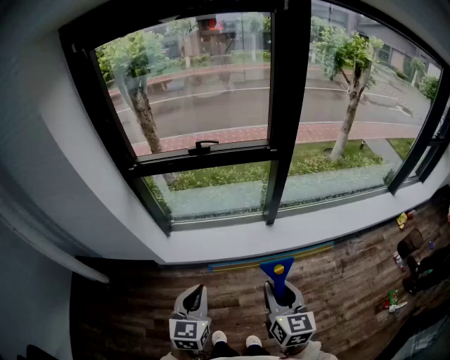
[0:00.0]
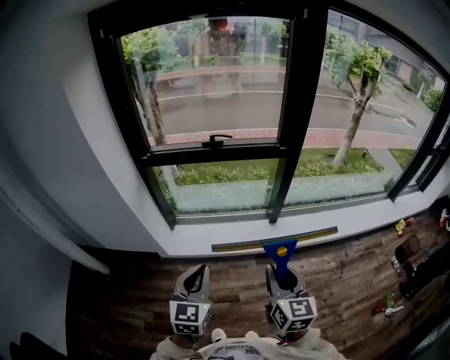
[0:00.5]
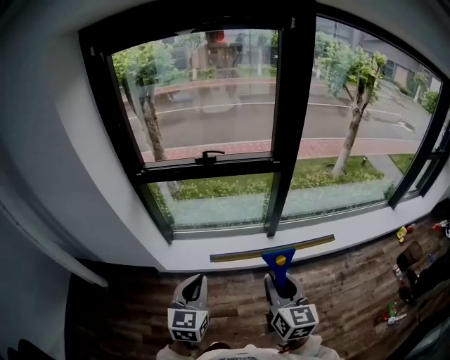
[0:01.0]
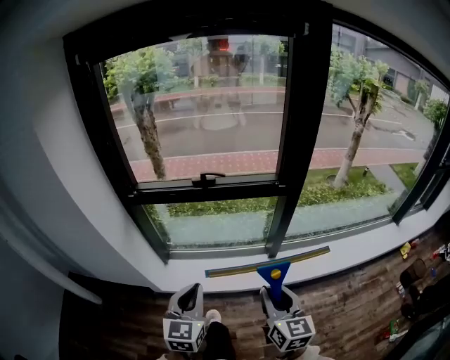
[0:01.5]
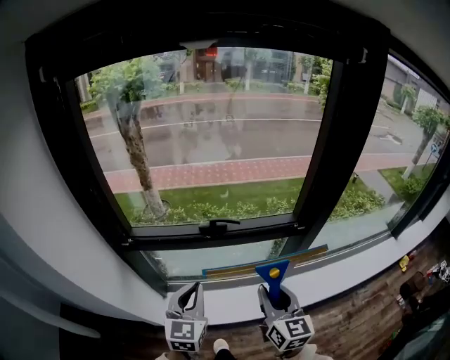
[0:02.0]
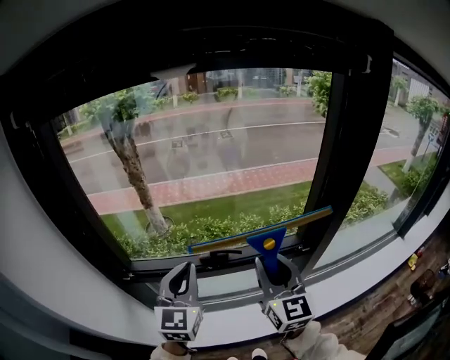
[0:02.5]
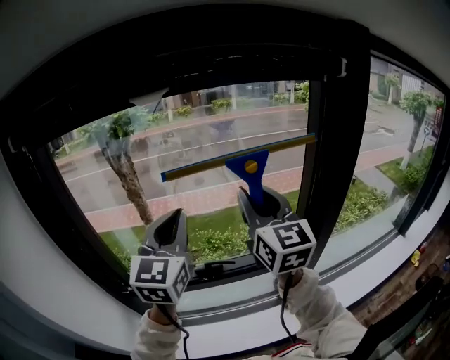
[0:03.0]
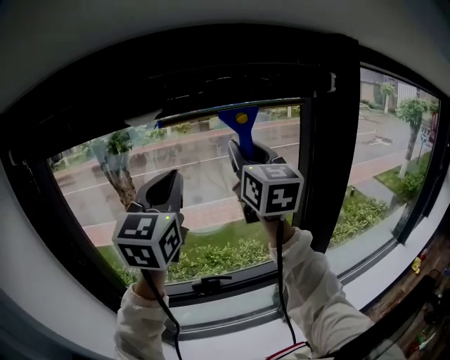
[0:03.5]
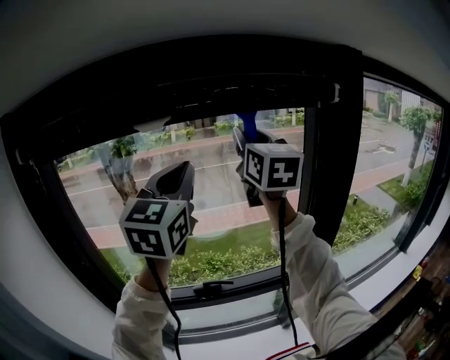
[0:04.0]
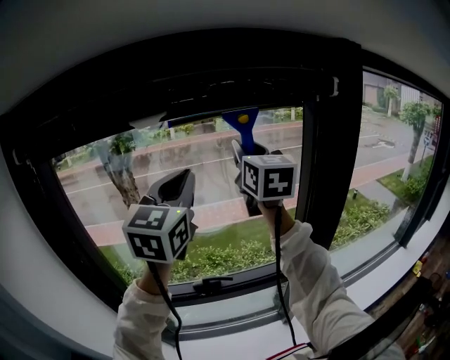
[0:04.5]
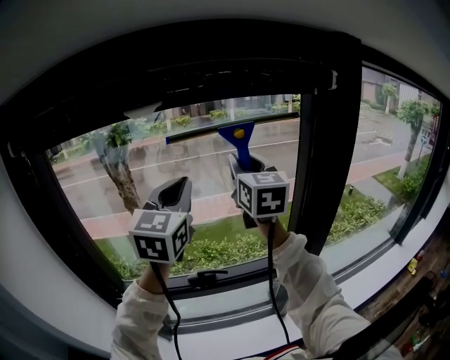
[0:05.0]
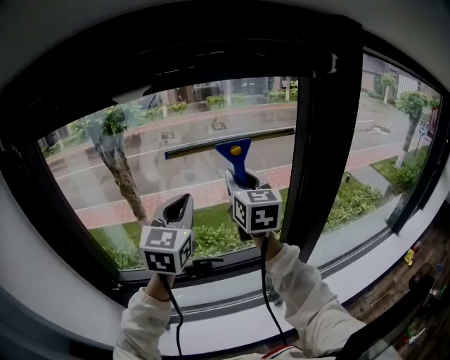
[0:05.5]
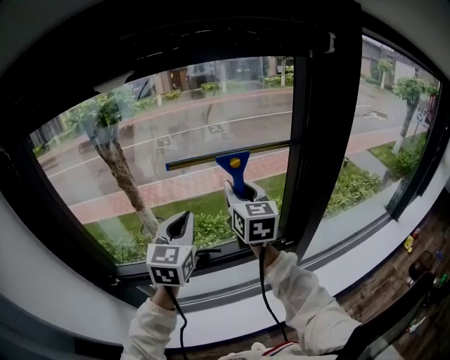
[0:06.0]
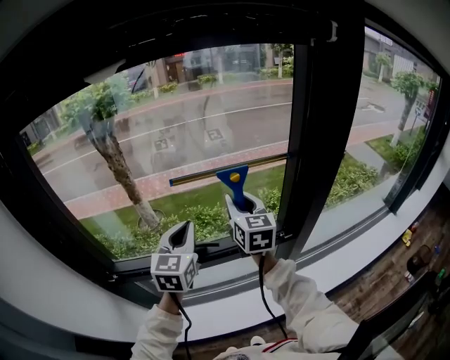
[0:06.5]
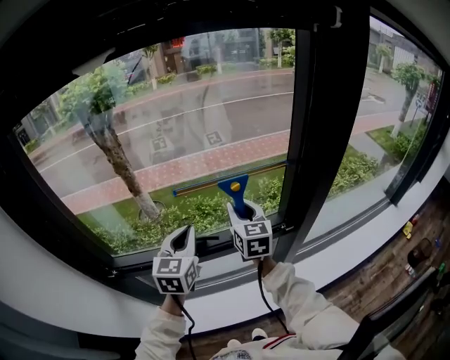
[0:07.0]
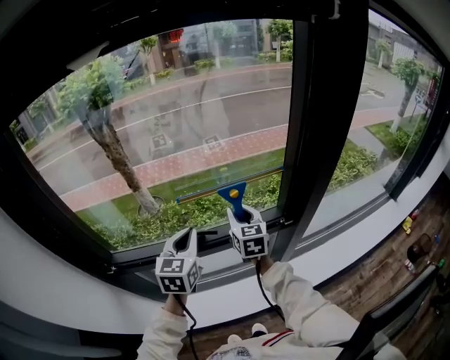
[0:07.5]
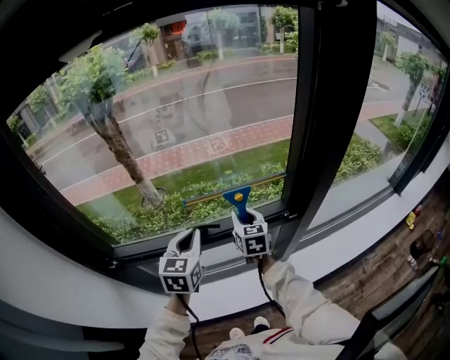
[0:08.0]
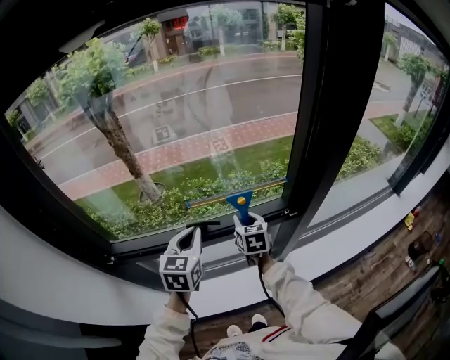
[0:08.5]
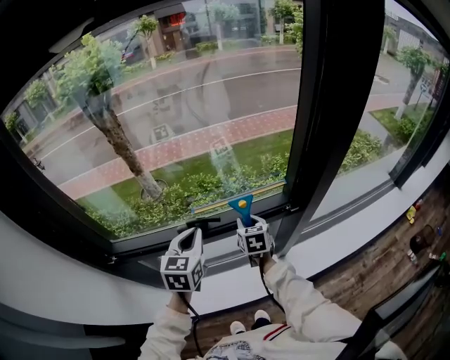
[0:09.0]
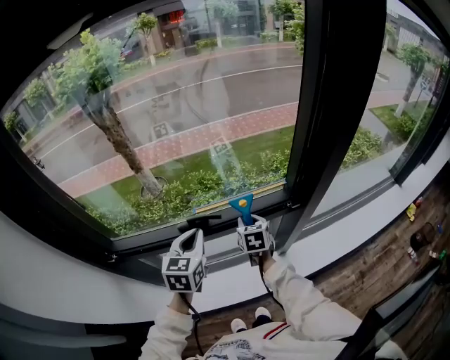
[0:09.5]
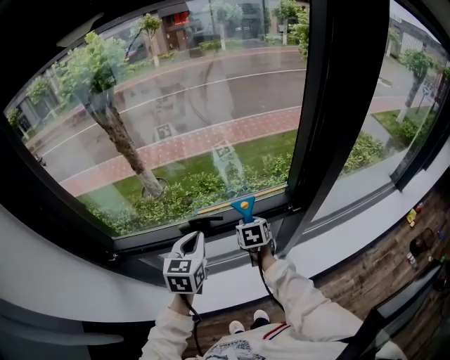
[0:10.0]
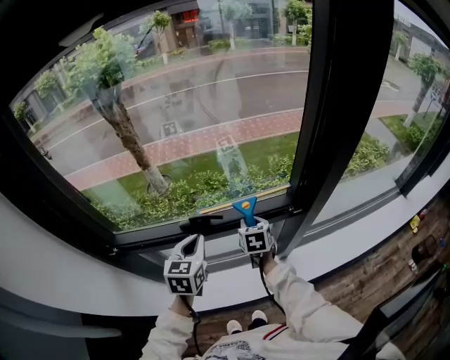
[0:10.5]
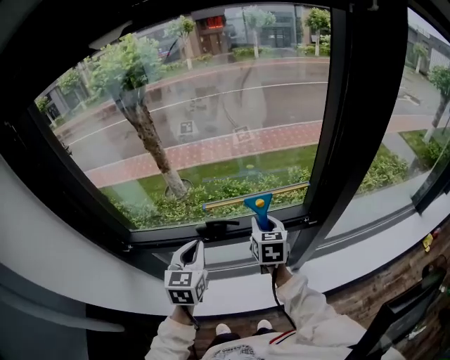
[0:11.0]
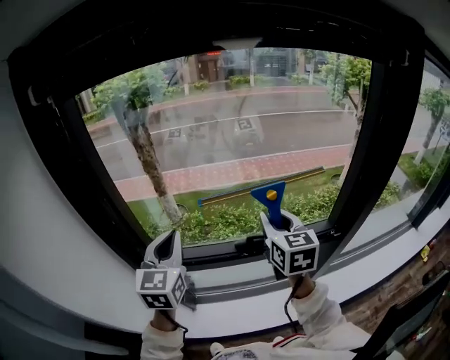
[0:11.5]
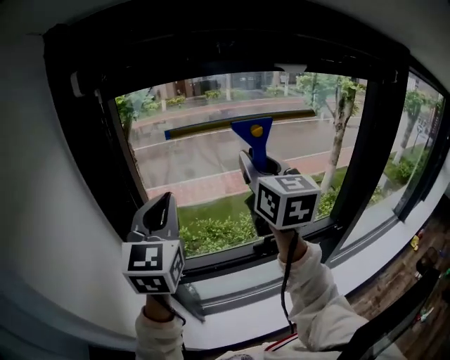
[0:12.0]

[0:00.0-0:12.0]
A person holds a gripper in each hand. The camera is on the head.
0:00.0 to 0:02.0: The two grippers go approximately 35 cm forward.
0:02.0 to 0:04.0: Both grippers travel together upward and forward, about 50 cm. The left gripper changes its angle by about 30 degrees, while the right gripper turns by approximately 30 degrees.
0:04.0 to 0:06.0: The grippers both shift downward by approximately 25 cm.
0:06.0 to 0:08.0: The left gripper heads downward, covering roughly 15 cm, while the right gripper moves downward, some 25 cm, and turns by about 20 degrees.
0:08.0 to 0:10.0: The right gripper heads downward, covering some 10 cm, and rotates about 20 degrees.
0:10.0 to 0:12.0: The two grippers go approximately 50 cm upward and to the left. The right gripper tips its fingers upward by approximately 50 degrees, while the left gripper turns by about 30 degrees.

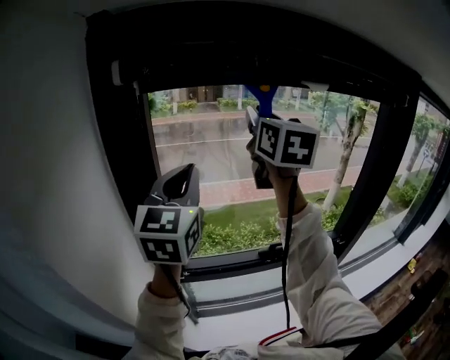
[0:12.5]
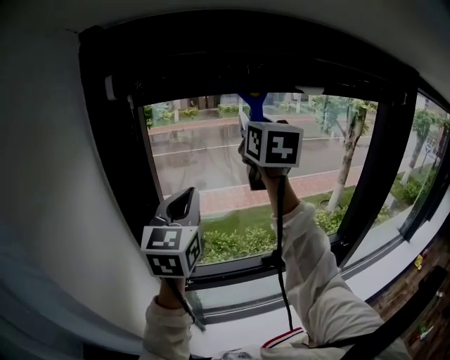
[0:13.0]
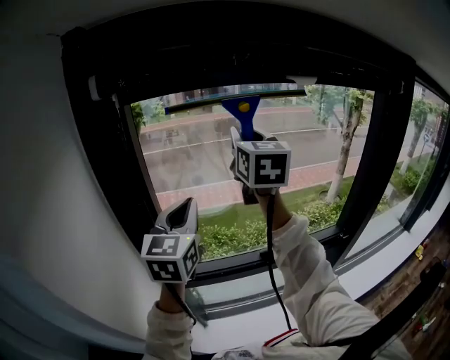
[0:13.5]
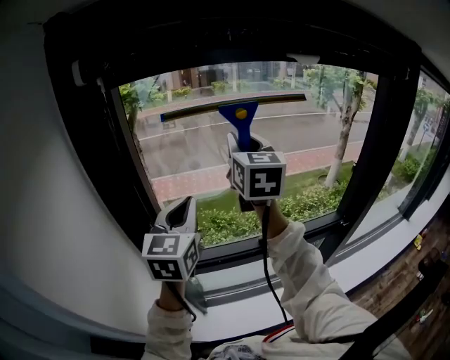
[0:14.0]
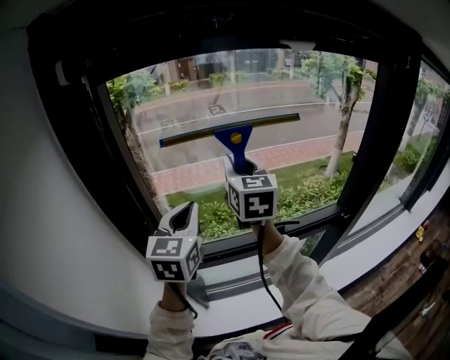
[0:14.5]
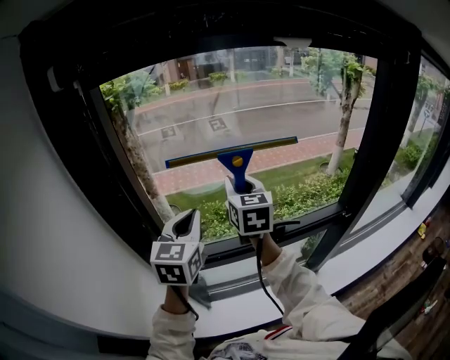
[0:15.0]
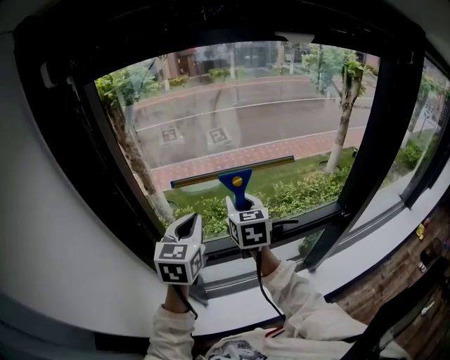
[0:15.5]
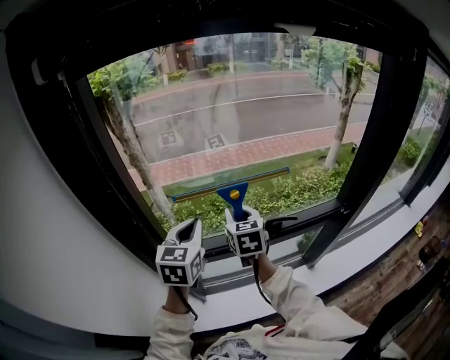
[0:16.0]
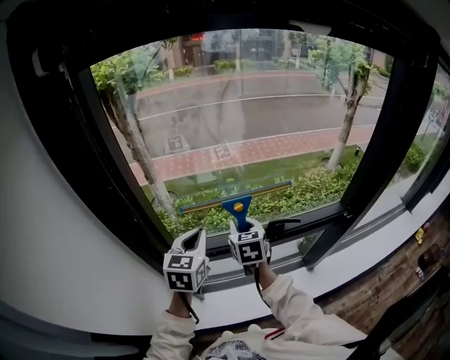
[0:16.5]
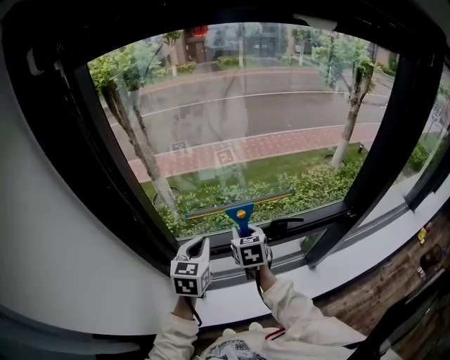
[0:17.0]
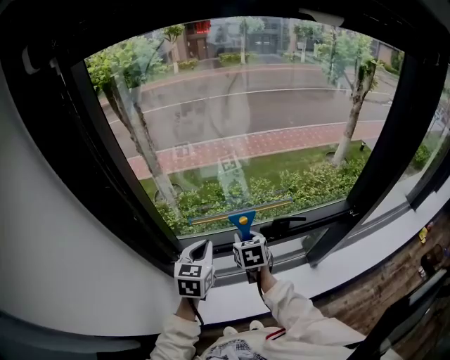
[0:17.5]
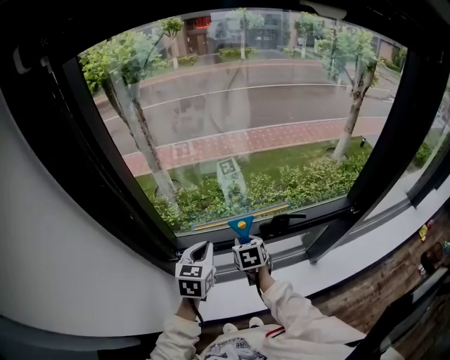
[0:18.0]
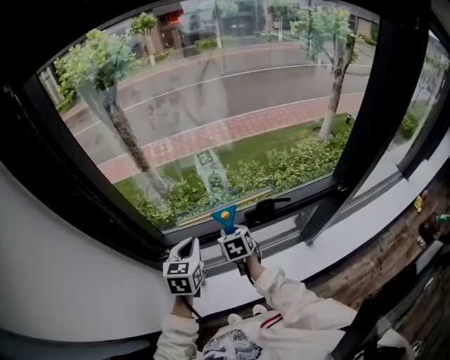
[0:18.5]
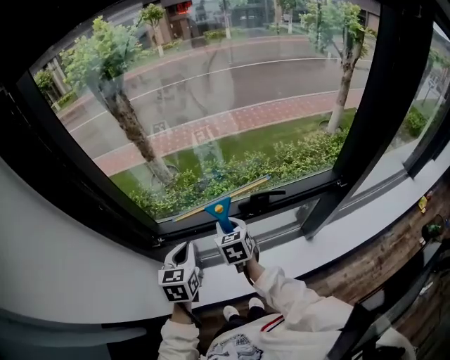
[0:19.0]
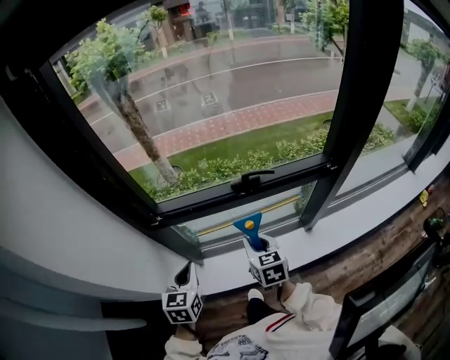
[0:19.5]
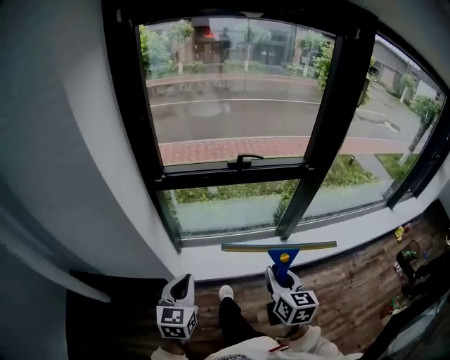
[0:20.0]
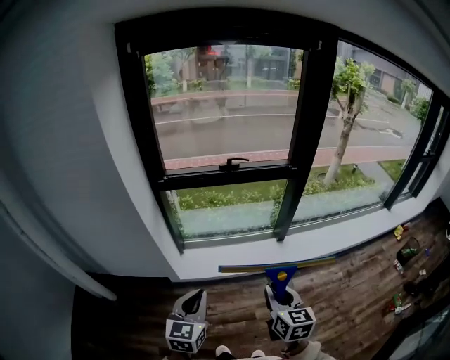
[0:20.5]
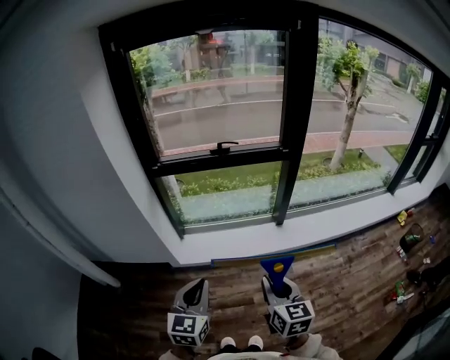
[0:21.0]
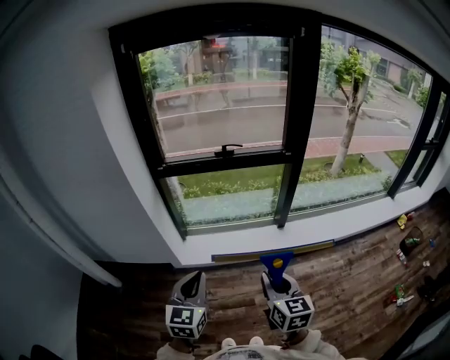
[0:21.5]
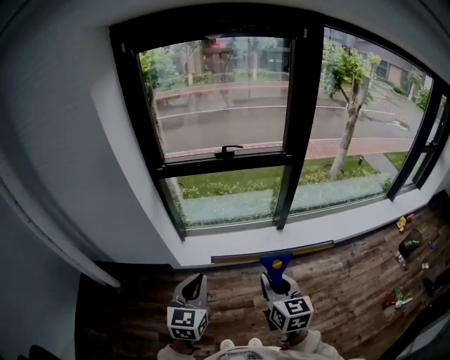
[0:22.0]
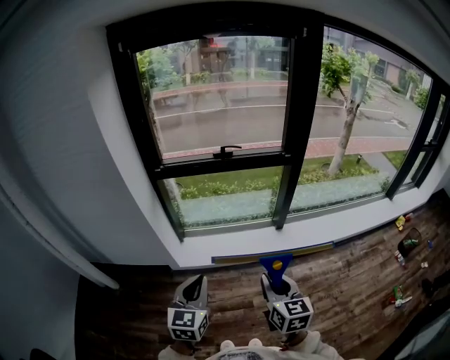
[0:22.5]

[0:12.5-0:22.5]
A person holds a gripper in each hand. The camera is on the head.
0:12.5 to 0:14.5: The grippers both shift downward by approximately 20 cm.
0:14.5 to 0:16.5: The right gripper goes roughly 25 cm downward, and rotates roughly 30 degrees. Meanwhile the left gripper moves downward, some 15 cm.
0:16.5 to 0:18.5: The two grippers go approximately 10 cm downward.
0:18.5 to 0:20.5: Both grippers are carried backward, about 70 cm. The right gripper changes its angle by roughly 20 degrees.
0:20.5 to 0:22.5: The left gripper changes place by roughly 5 cm.

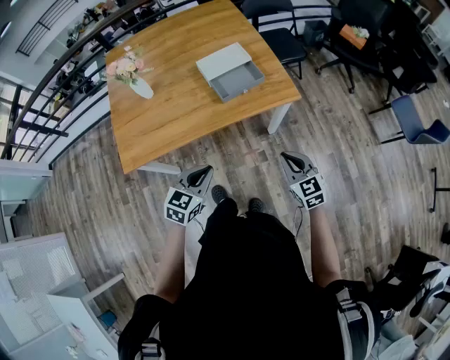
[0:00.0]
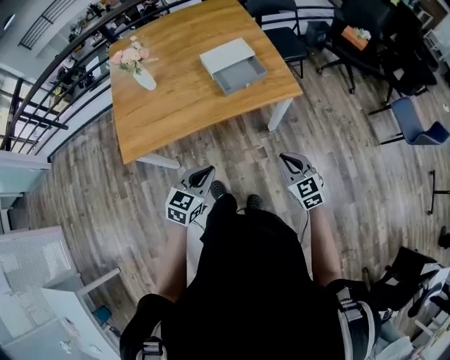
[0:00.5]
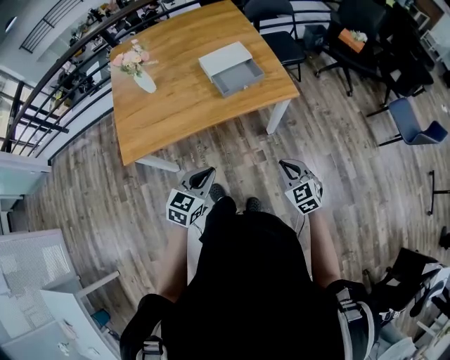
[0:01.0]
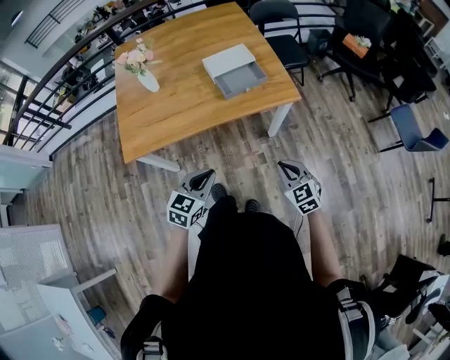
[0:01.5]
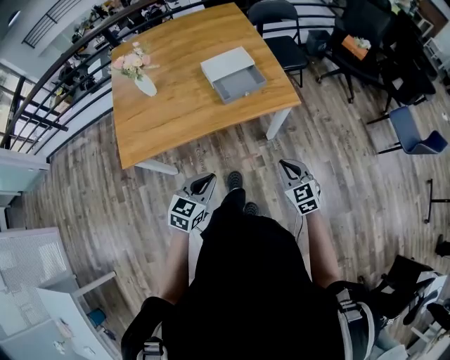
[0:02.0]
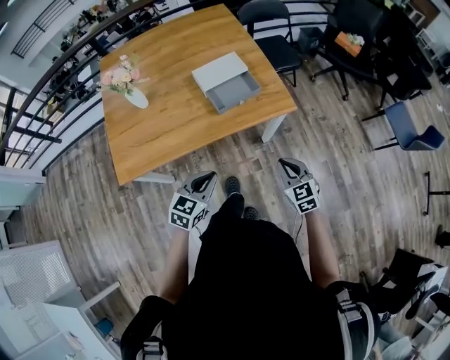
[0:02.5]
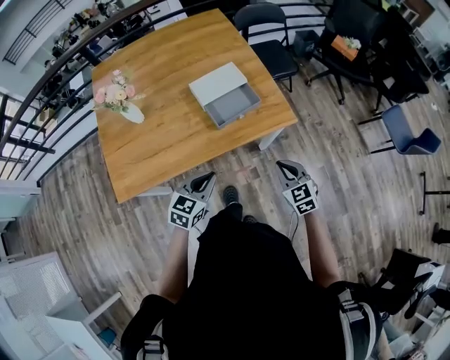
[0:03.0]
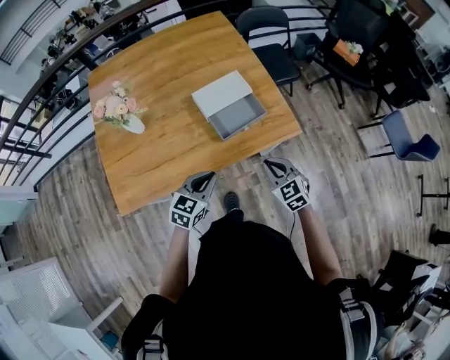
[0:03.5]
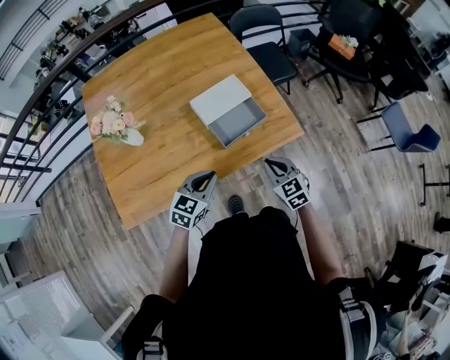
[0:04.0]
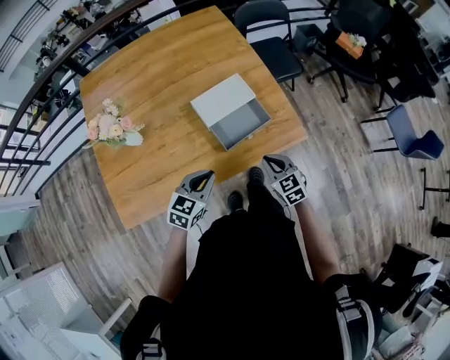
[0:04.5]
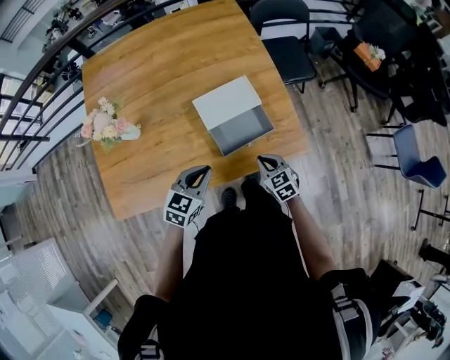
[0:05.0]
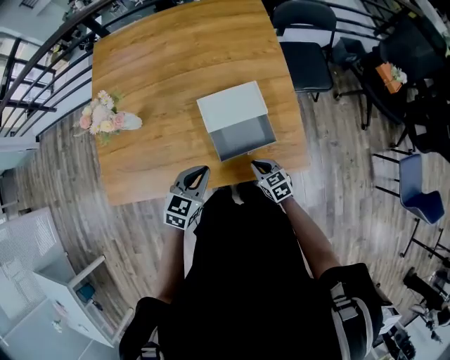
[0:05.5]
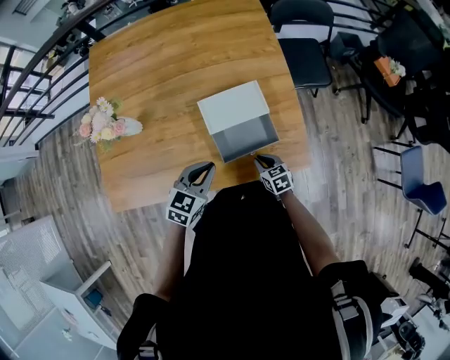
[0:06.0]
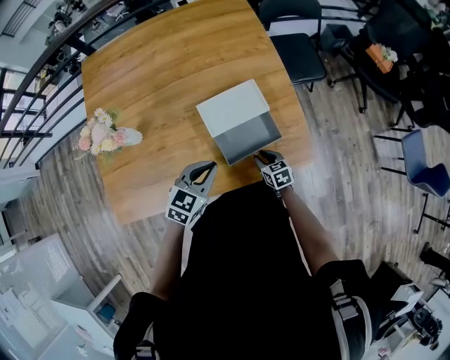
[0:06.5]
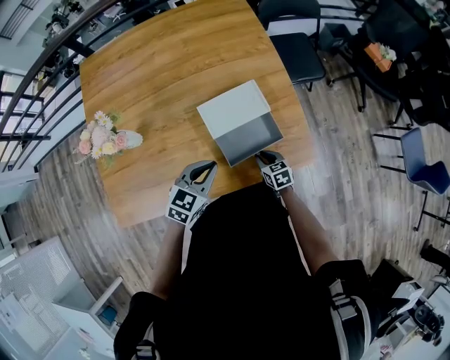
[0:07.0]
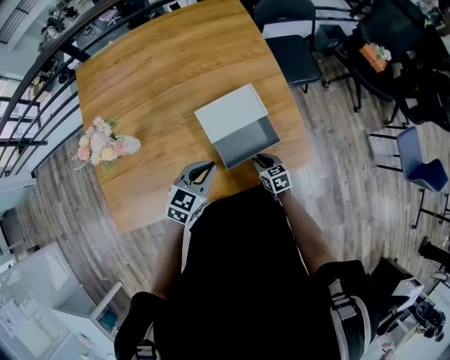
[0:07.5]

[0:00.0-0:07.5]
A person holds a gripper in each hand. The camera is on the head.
0:02.0 to 0:04.0: The right gripper heads forward and to the left, covering about 30 cm, while the left gripper goes about 30 cm forward.
0:04.0 to 0:05.5: The right gripper is displaced forward and downward by approximately 20 cm, and turns by roughly 30 degrees, while the left gripper goes roughly 15 cm forward.
0:05.5 to 0:07.5: The left gripper goes about 5 cm forward. The right gripper moves approximately 5 cm.
